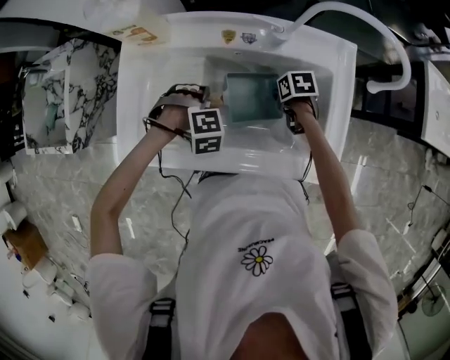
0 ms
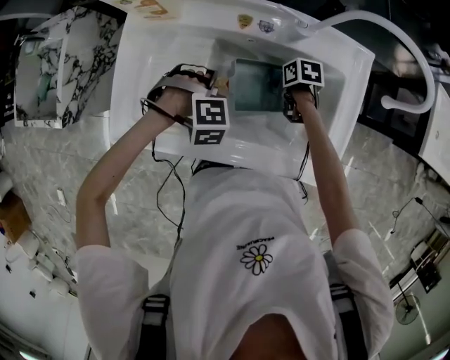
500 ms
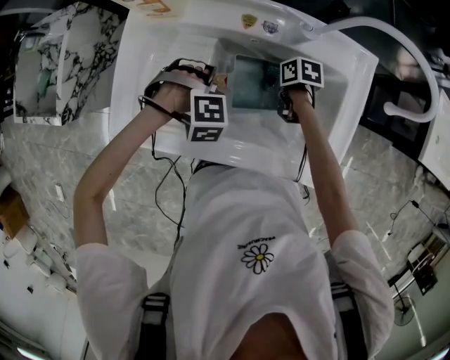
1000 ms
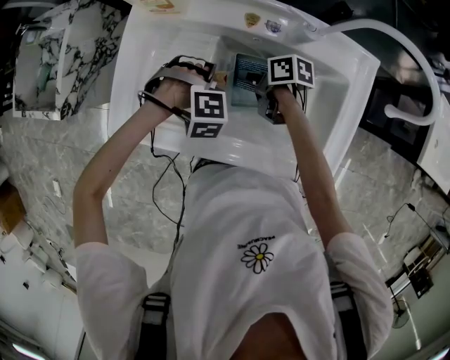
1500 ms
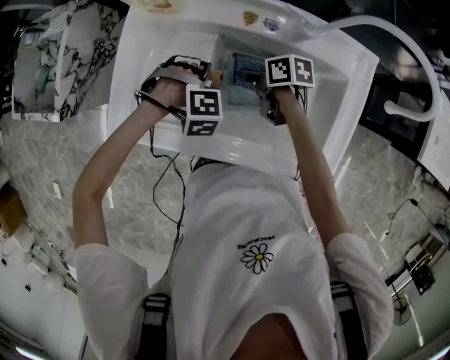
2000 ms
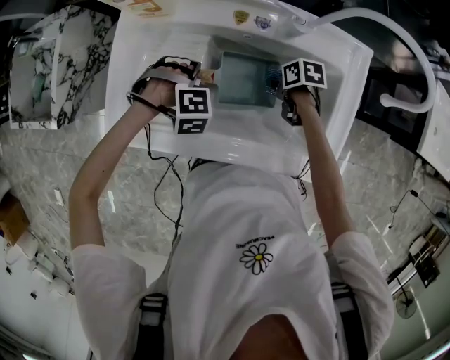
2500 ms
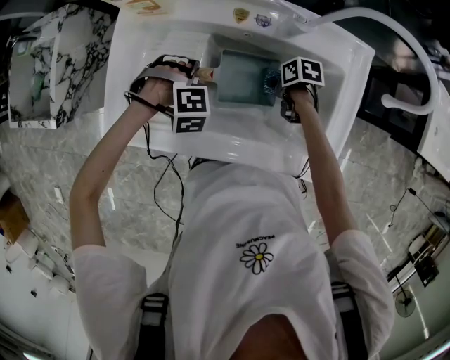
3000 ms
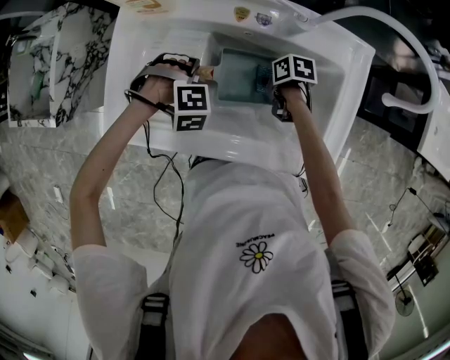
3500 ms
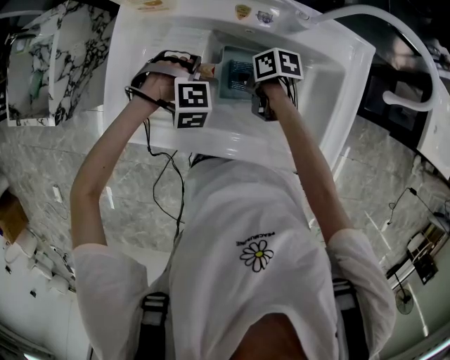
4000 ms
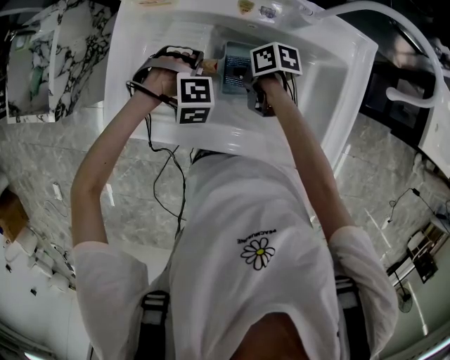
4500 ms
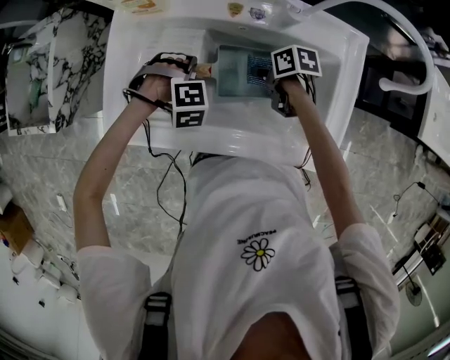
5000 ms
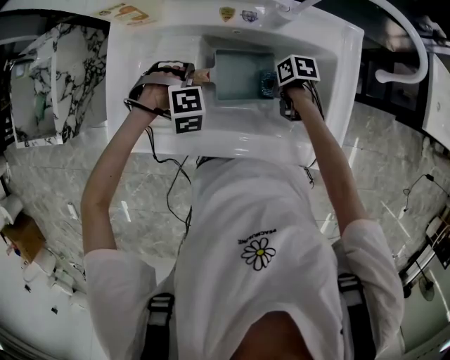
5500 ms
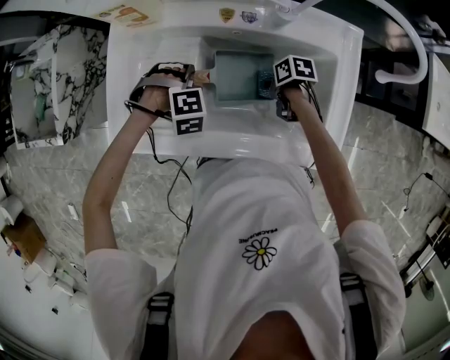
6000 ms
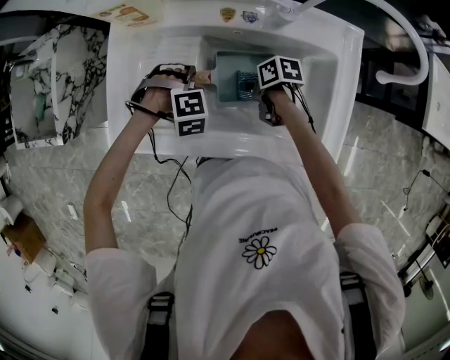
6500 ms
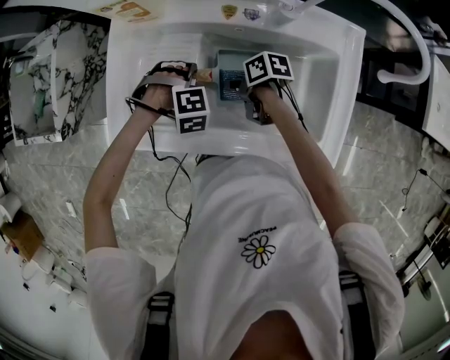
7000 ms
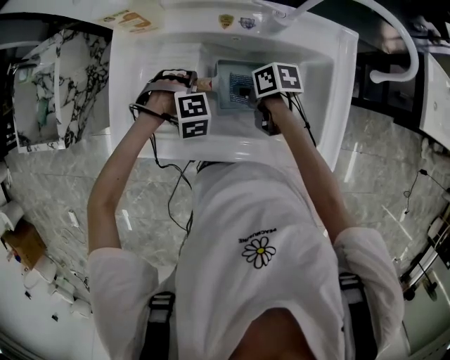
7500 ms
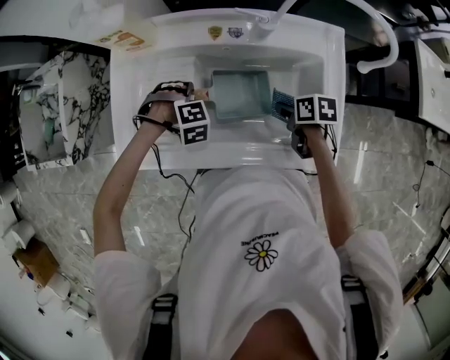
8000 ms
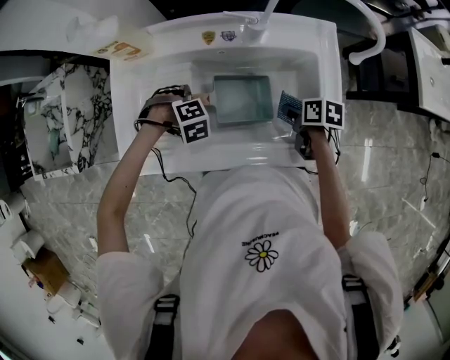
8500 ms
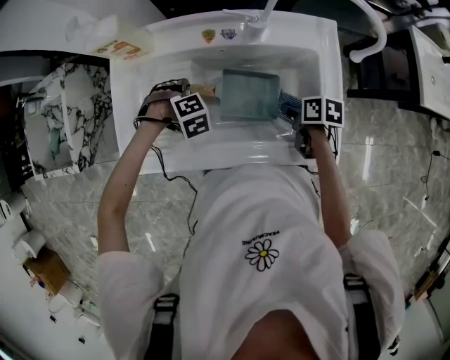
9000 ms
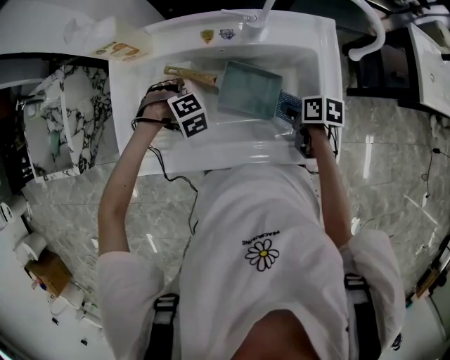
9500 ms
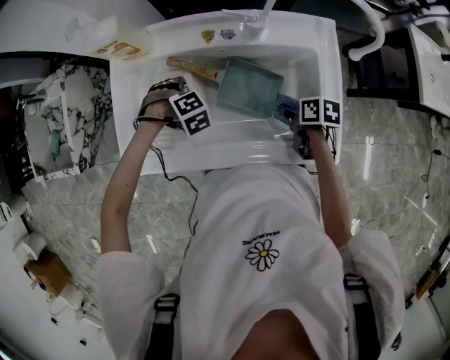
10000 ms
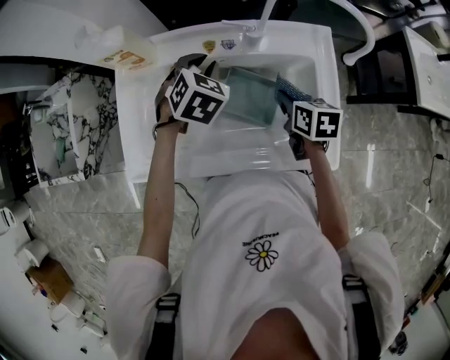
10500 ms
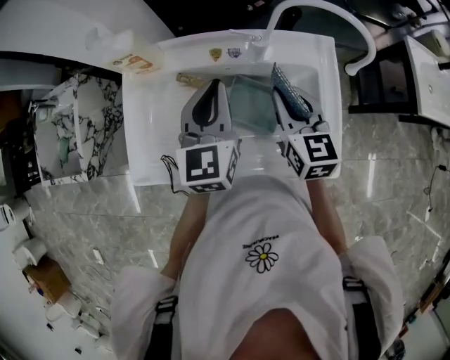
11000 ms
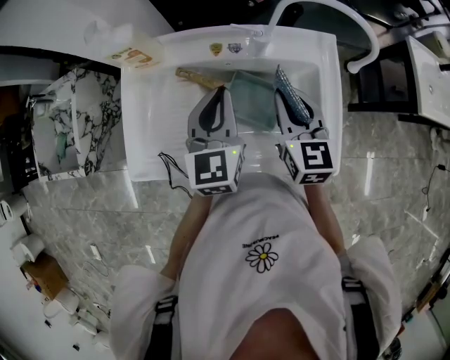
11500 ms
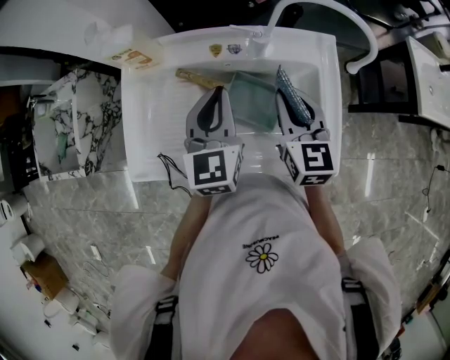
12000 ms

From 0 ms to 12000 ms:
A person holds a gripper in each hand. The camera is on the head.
From 0 ms to 2000 ms: The right gripper changes place by roughly 15 cm, and rotates about 30 degrees.
From 4000 ms to 6000 ms: The right gripper ends up approximately 10 cm from where it was.
From 6000 ms to 8000 ms: The right gripper moves upward, about 10 cm.
From 10000 ms to 12000 ms: The right gripper heads upward, covering approximately 20 cm, and angles its fingers upward, by about 30 degrees.

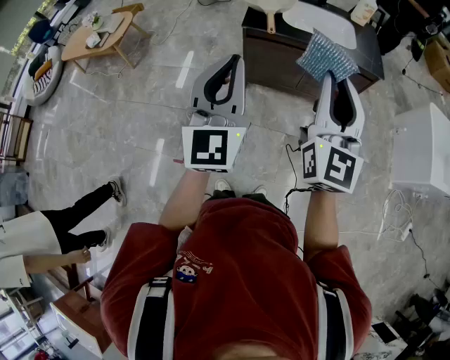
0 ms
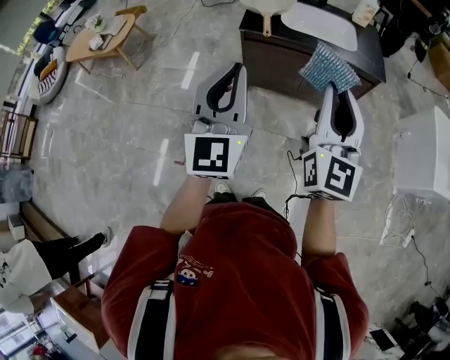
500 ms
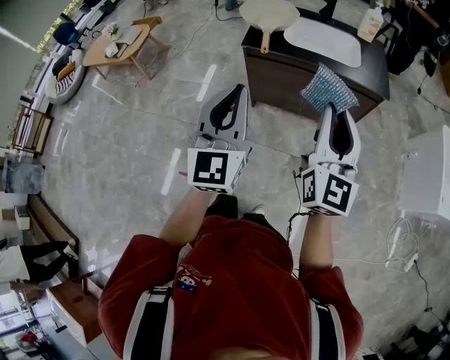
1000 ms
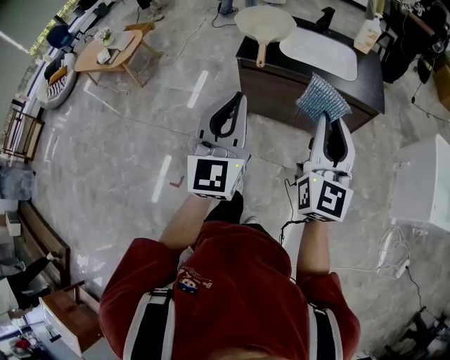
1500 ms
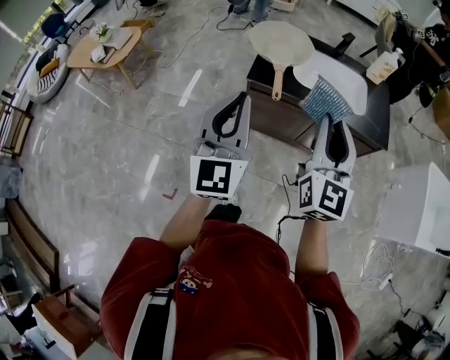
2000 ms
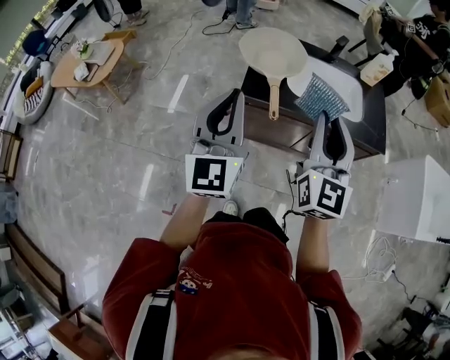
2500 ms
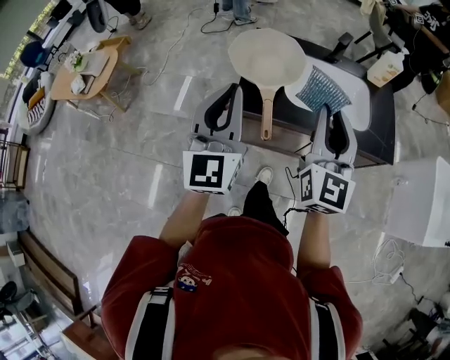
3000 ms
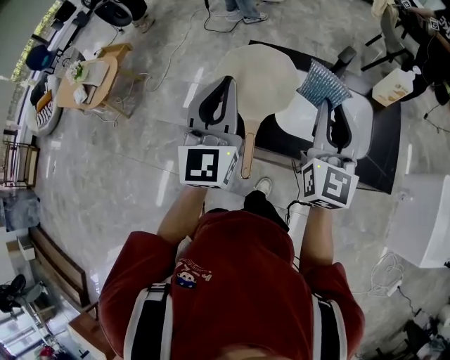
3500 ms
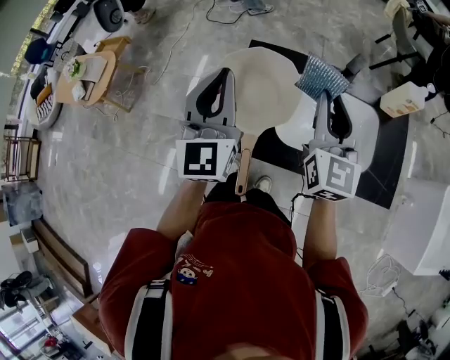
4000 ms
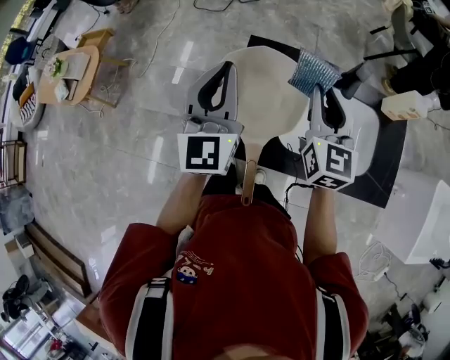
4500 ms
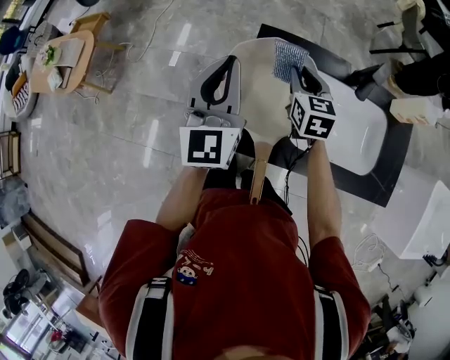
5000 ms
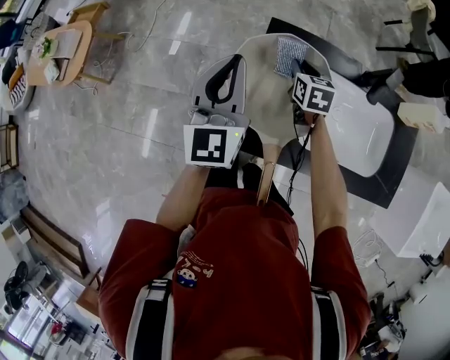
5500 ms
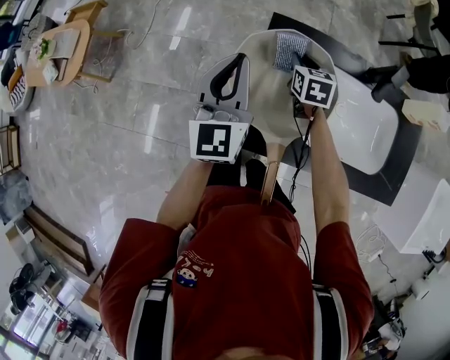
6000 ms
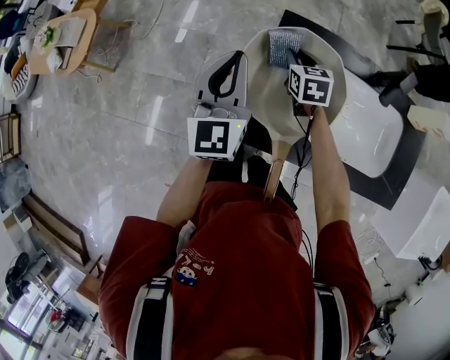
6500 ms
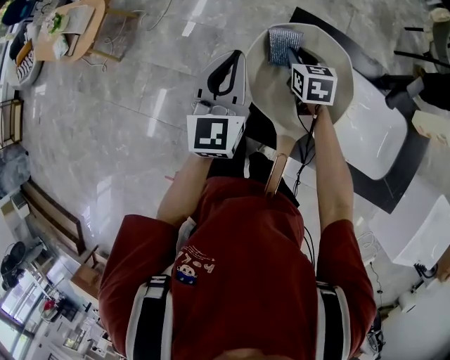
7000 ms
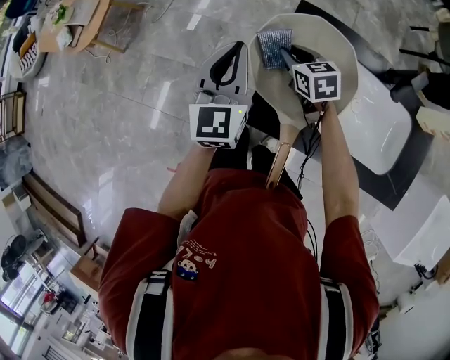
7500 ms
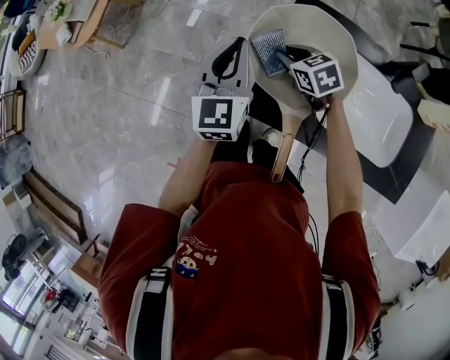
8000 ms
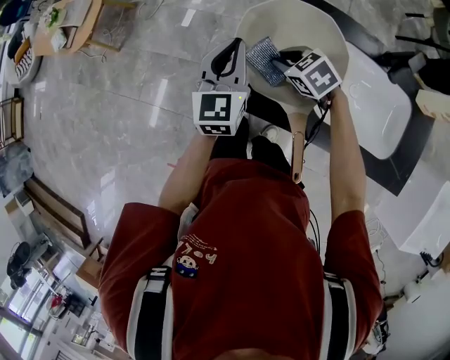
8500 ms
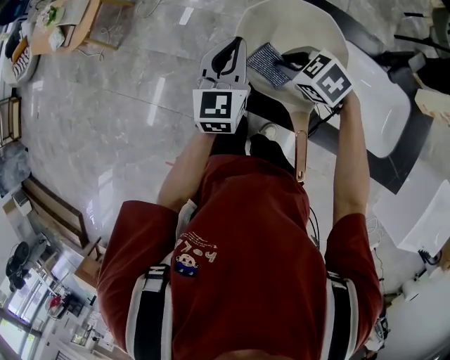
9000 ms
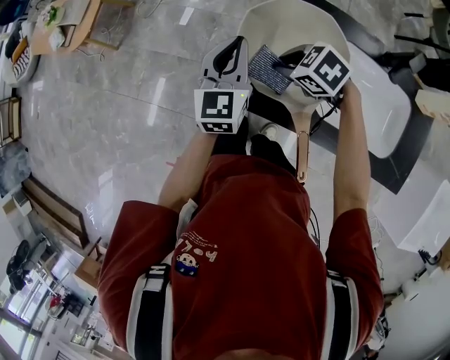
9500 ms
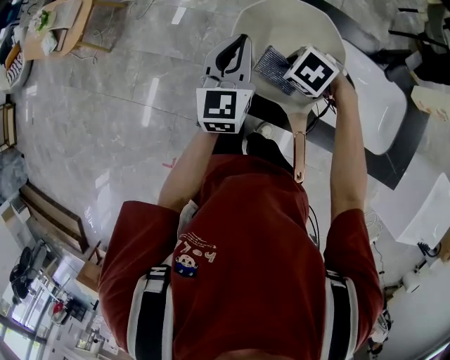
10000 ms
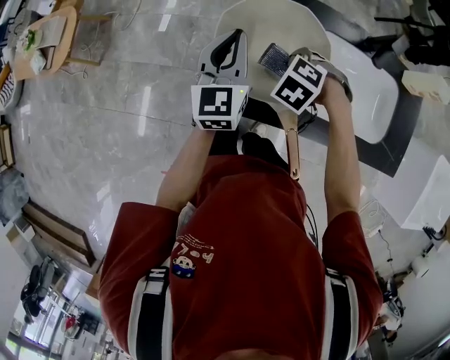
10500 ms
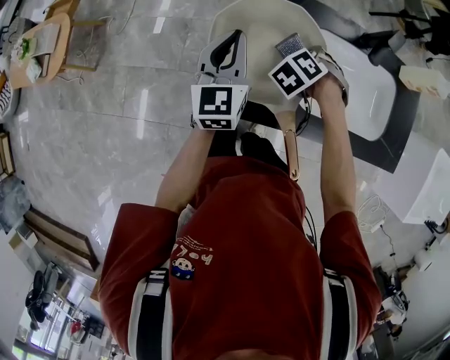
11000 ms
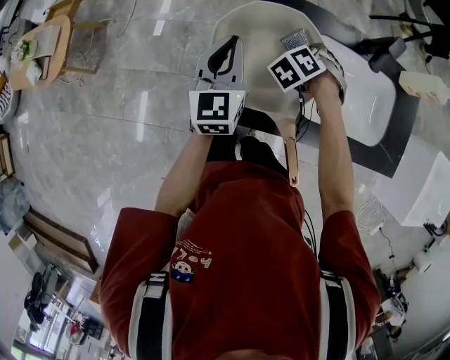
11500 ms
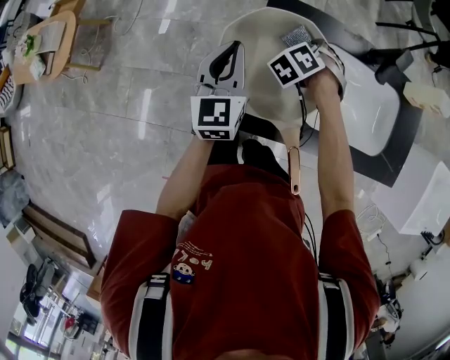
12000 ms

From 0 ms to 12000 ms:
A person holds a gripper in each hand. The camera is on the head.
From 0 ms to 2000 ms: The two grippers go roughly 20 cm forward.
From 2000 ms to 4000 ms: The pair of grippers is taken forward, roughly 40 cm.
From 4000 ms to 6000 ms: The right gripper moves downward and forward, roughly 35 cm, and tilts its fingers some 40 degrees downward, while the left gripper shifts approximately 20 cm downward, forward and to the left.
From 6000 ms to 8000 ms: The left gripper ends up about 5 cm from where it was, while the right gripper changes place by roughly 15 cm, and rotates about 40 degrees.
From 8000 ms to 10000 ms: The right gripper shifts by about 5 cm, and turns by roughly 40 degrees.
From 10000 ms to 12000 ms: The right gripper changes place by approximately 15 cm, and rotates some 50 degrees.

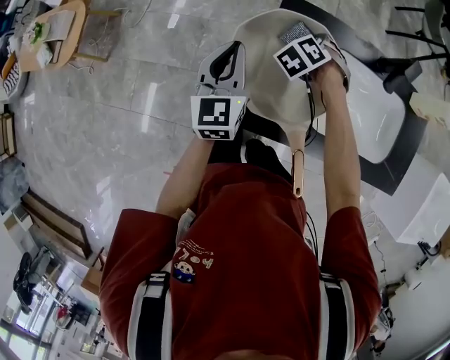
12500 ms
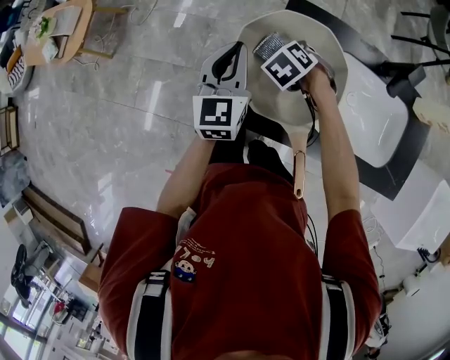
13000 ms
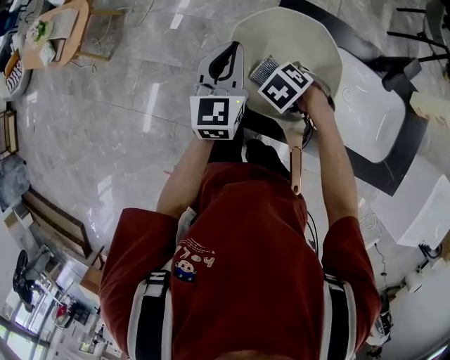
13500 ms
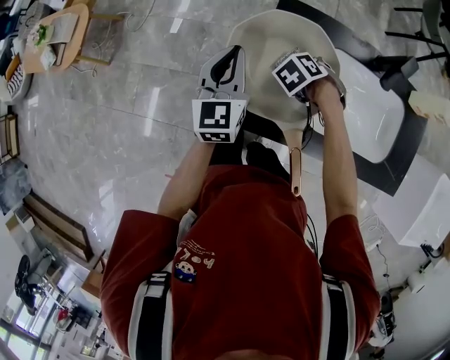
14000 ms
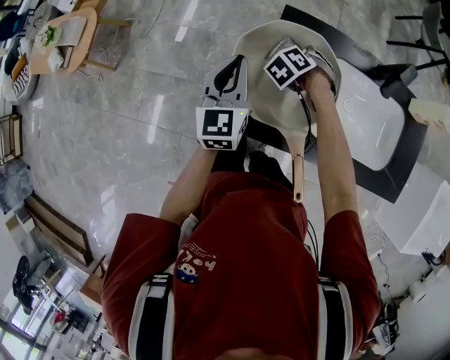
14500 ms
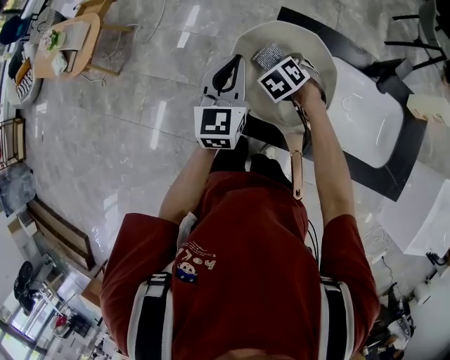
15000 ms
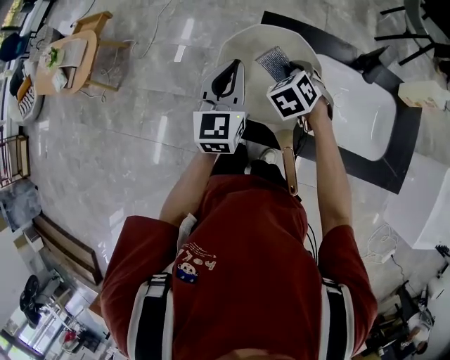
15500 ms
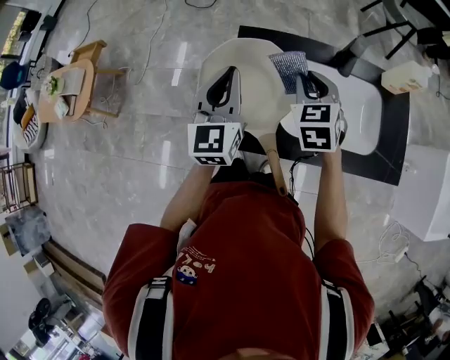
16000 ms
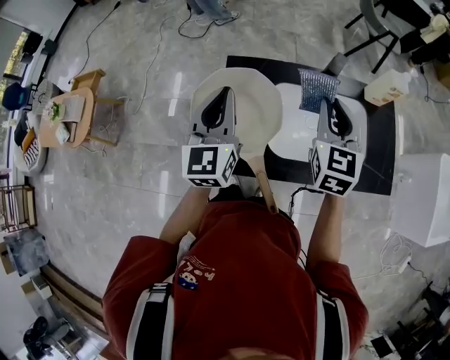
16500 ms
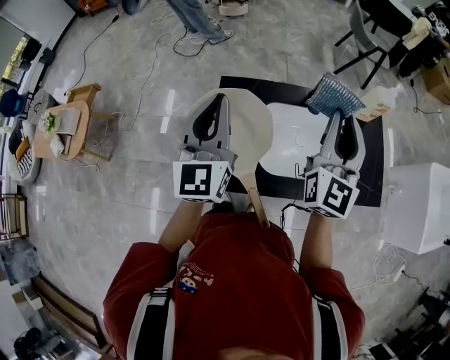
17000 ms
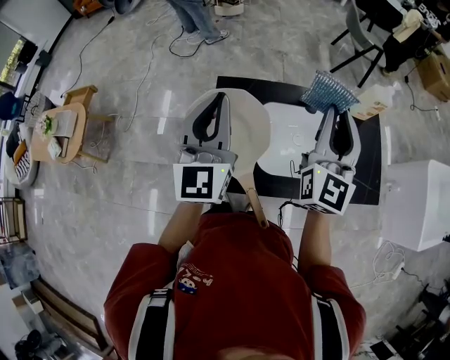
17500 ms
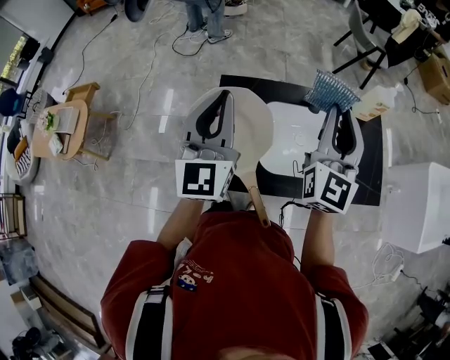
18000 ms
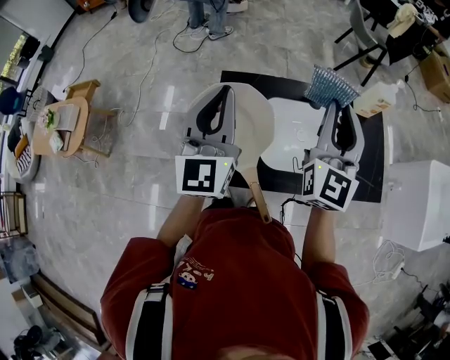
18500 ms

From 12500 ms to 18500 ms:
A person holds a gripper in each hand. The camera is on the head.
From 14500 ms to 16500 ms: The right gripper is displaced upward and to the right by roughly 35 cm, and tilts its fingers roughly 50 degrees upward. Meanwhile the left gripper travels upward and to the right by approximately 20 cm.
From 16500 ms to 18500 ms: Both grippers travel together upward, roughly 10 cm. The right gripper rotates about 30 degrees.
